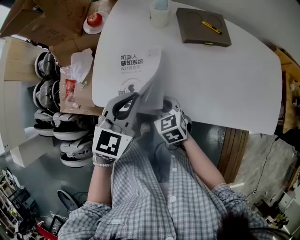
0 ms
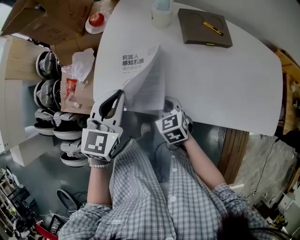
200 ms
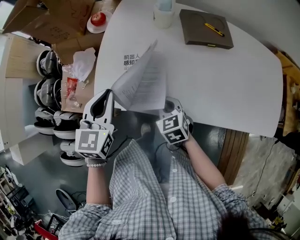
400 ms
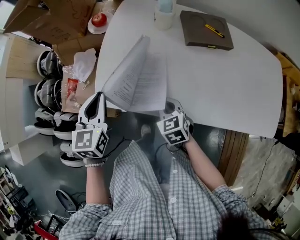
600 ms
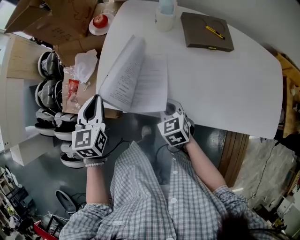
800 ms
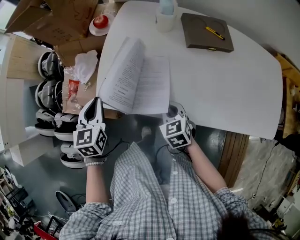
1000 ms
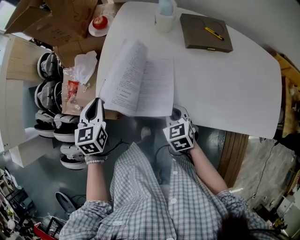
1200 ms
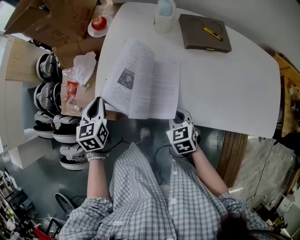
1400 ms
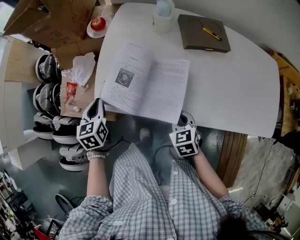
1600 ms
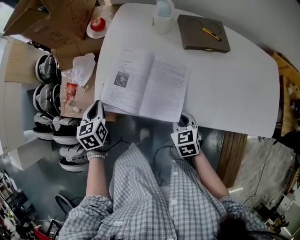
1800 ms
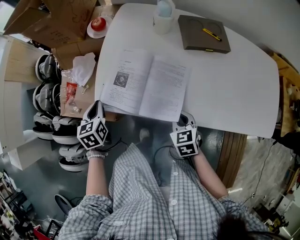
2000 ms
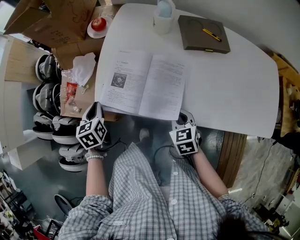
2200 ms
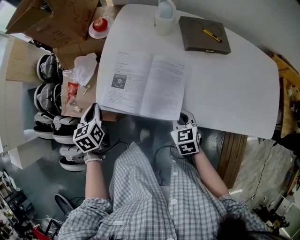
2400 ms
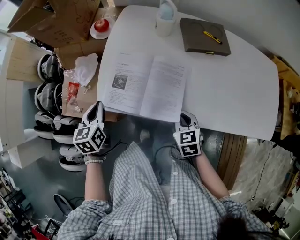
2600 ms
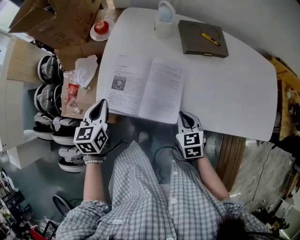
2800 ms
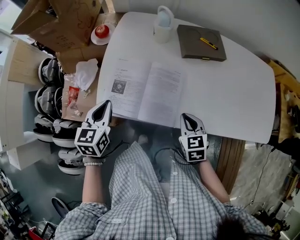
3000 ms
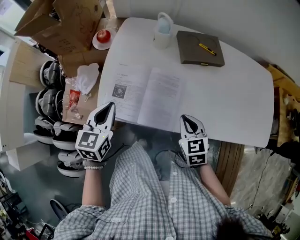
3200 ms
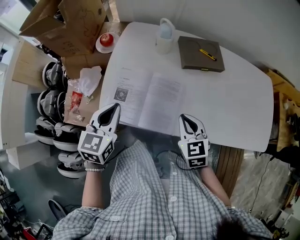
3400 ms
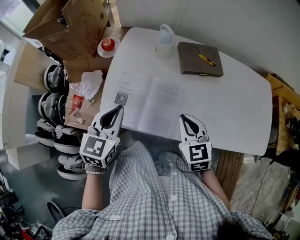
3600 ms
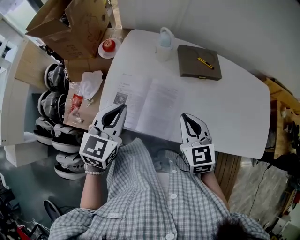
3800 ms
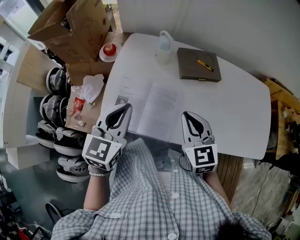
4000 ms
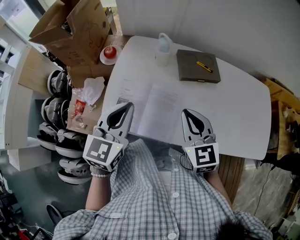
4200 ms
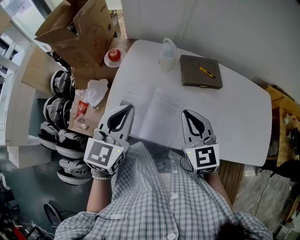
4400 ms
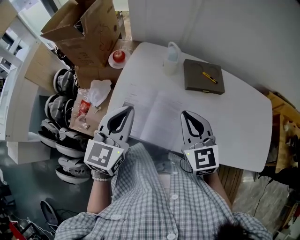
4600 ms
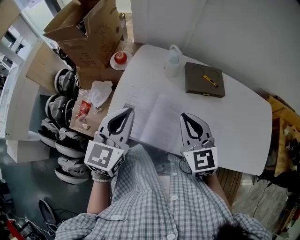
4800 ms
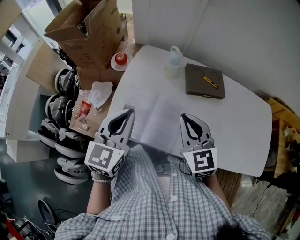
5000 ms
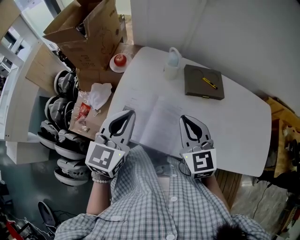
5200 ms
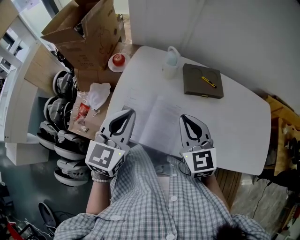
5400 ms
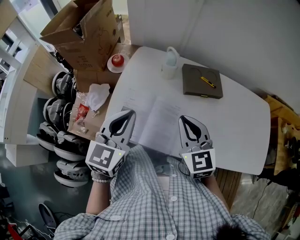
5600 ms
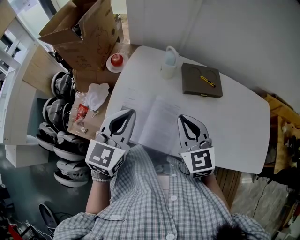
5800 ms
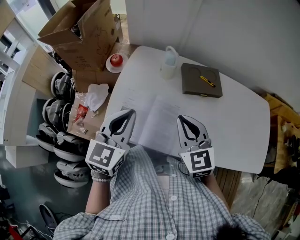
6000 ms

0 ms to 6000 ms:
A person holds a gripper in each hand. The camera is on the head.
0 ms to 1600 ms: The right gripper is displaced to the right by some 5 cm. Meanwhile the left gripper moves to the left and downward, roughly 20 cm, and changes its angle by about 40 degrees.
1600 ms to 3000 ms: The left gripper shifts some 10 cm upward and to the right. The right gripper shifts by about 5 cm.
3000 ms to 4400 ms: The left gripper travels upward and to the right by roughly 20 cm, and changes its angle by approximately 20 degrees; the right gripper is displaced upward by about 20 cm, and changes its angle by about 30 degrees.
4400 ms to 6000 ms: The grippers make only small movements.

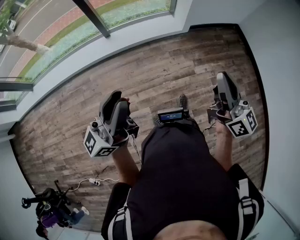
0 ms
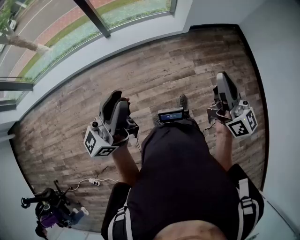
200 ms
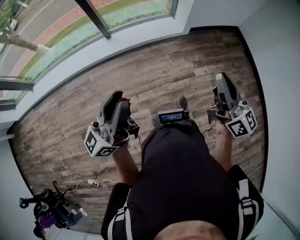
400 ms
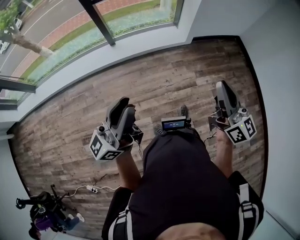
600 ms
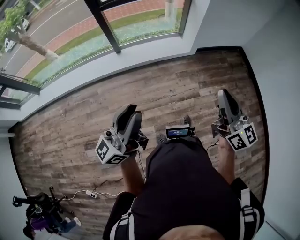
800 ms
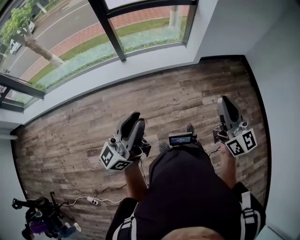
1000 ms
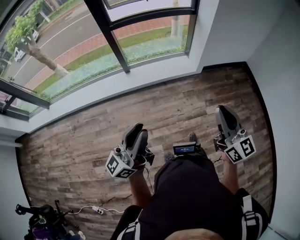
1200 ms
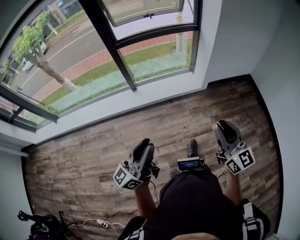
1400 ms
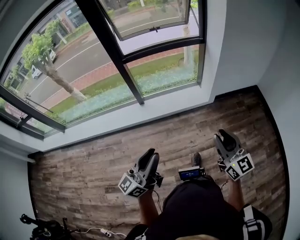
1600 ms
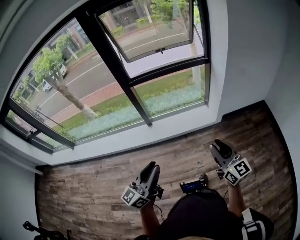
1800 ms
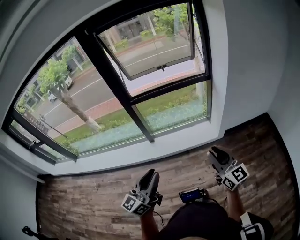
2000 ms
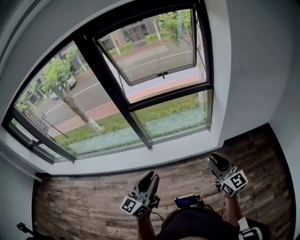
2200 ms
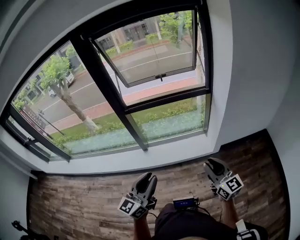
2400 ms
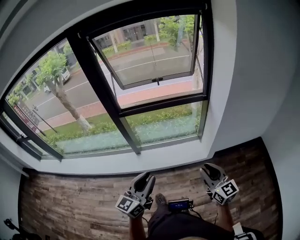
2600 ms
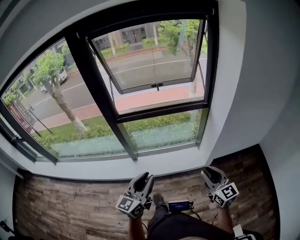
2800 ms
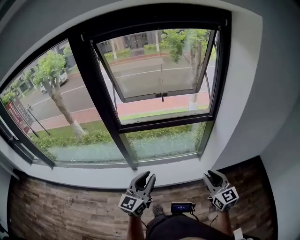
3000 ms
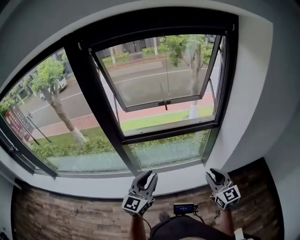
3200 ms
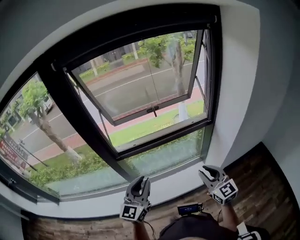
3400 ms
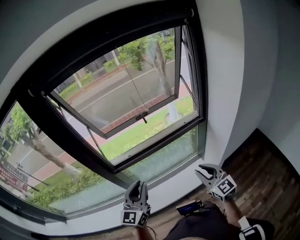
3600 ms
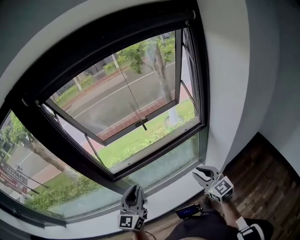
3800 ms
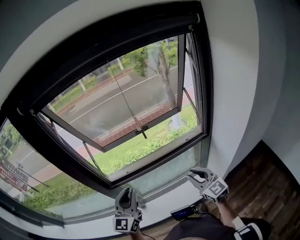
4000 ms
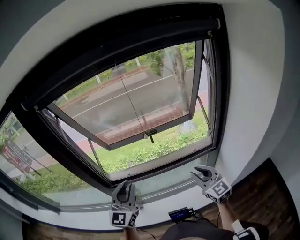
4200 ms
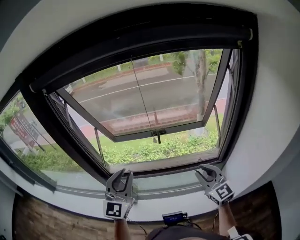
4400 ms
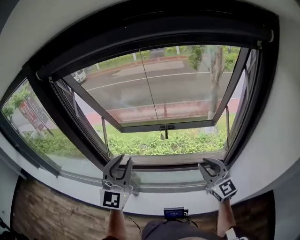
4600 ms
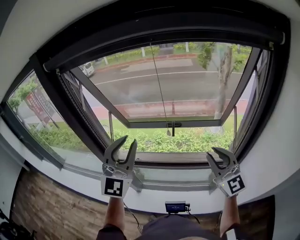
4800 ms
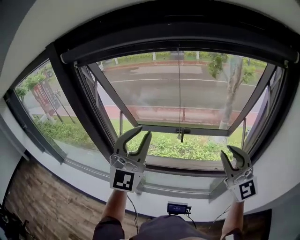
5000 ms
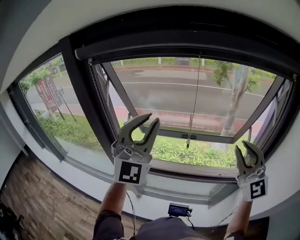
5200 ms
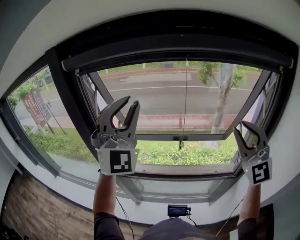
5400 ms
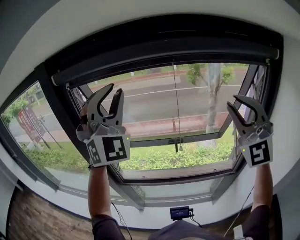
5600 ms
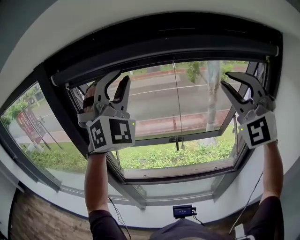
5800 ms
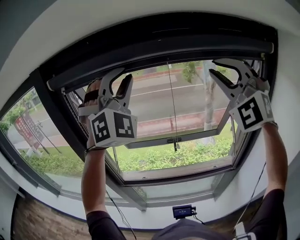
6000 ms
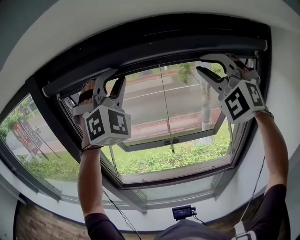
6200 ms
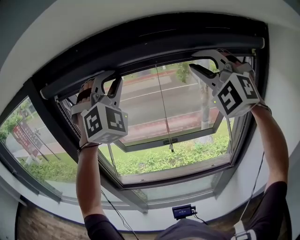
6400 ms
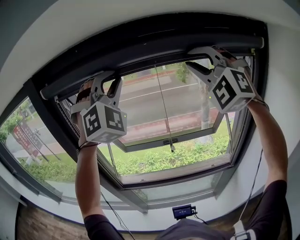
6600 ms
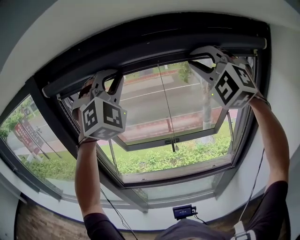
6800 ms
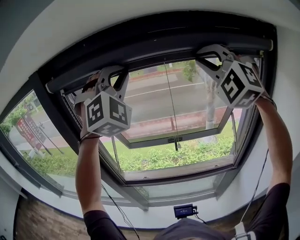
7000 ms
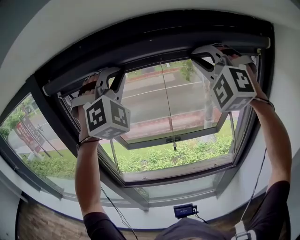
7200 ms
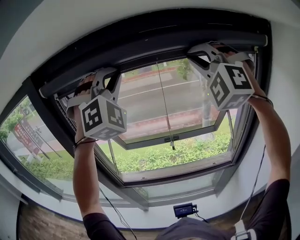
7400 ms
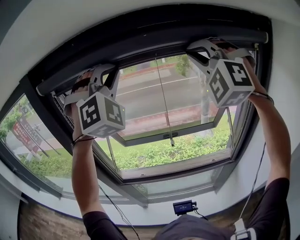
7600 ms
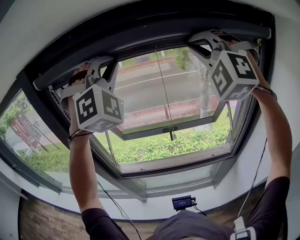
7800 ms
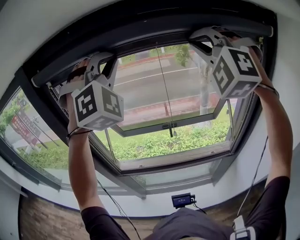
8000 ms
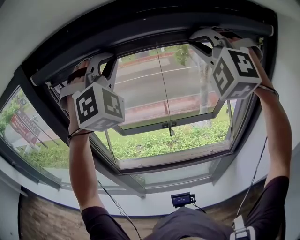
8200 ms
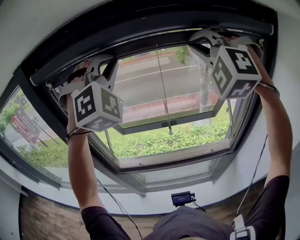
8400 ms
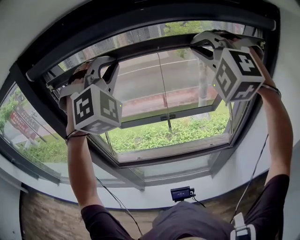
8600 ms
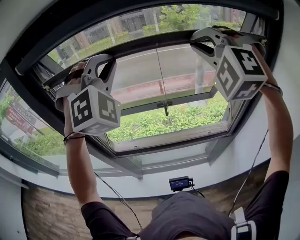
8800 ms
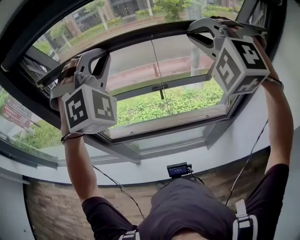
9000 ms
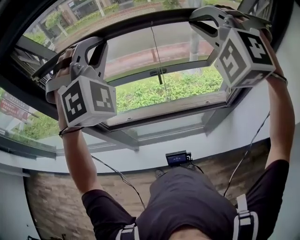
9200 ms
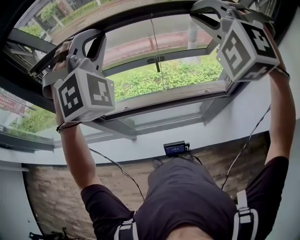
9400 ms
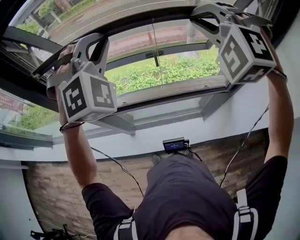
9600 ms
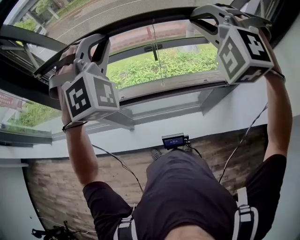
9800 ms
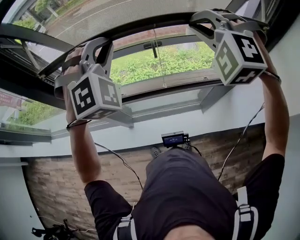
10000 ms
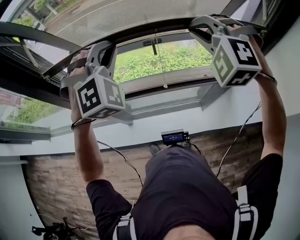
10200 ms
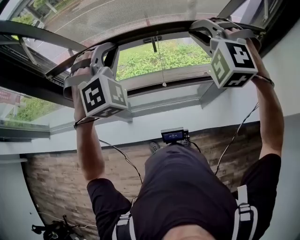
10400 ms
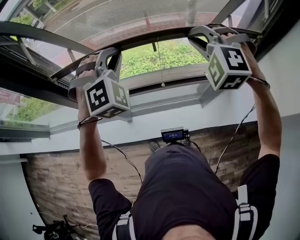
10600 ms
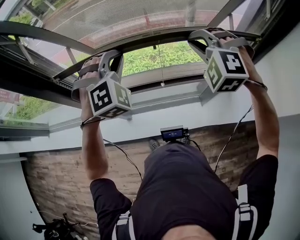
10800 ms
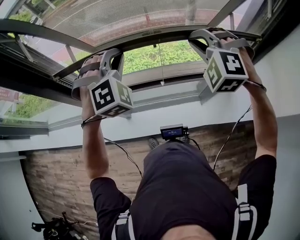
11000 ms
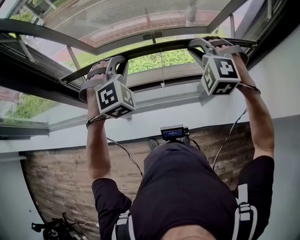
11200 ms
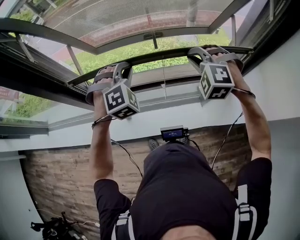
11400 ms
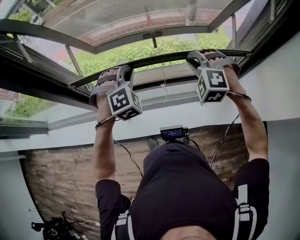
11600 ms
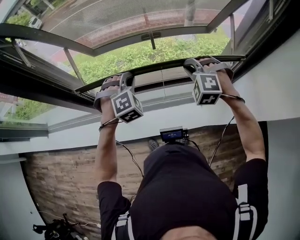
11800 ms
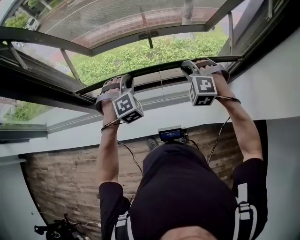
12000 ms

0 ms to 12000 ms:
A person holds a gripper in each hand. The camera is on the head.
0 ms to 1600 ms: The left gripper travels forward by about 10 cm; the right gripper is displaced forward and to the left by some 10 cm, rotates about 20 degrees, and opens up.
1600 ms to 3000 ms: Both grippers move forward, about 40 cm. The left gripper swivels about 30 degrees.
3000 ms to 4400 ms: The grippers both shift forward by some 35 cm. The left gripper changes its angle by roughly 30 degrees.
4400 ms to 6000 ms: The grippers both shift upward by about 40 cm. The right gripper rotates around the line of its fingers by approximately 70 degrees, counterclockwise from behind; the left gripper rolls clockwise, seen from behind, by about 60 degrees.
6000 ms to 7600 ms: The right gripper is displaced forward by some 5 cm.
7600 ms to 9000 ms: Both grippers move downward, approximately 10 cm.
9000 ms to 10400 ms: Both grippers move downward, approximately 20 cm.
10400 ms to 12000 ms: Both grippers travel together downward, roughly 20 cm. The left gripper swivels roughly 20 degrees.

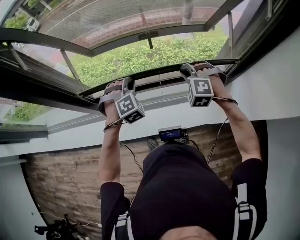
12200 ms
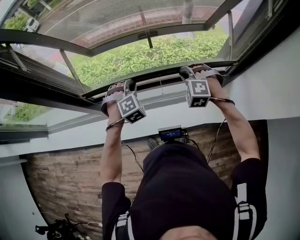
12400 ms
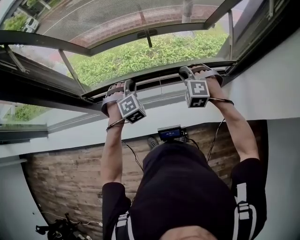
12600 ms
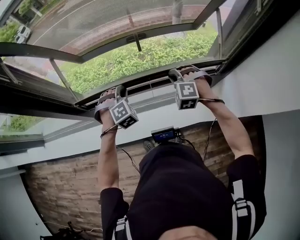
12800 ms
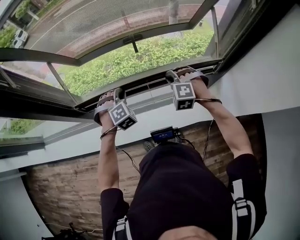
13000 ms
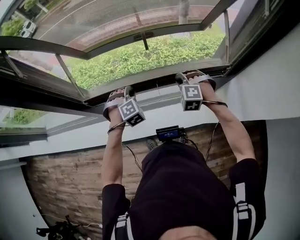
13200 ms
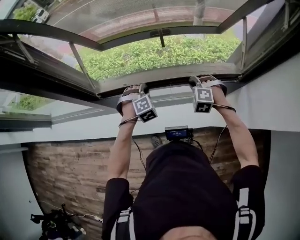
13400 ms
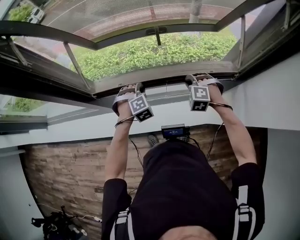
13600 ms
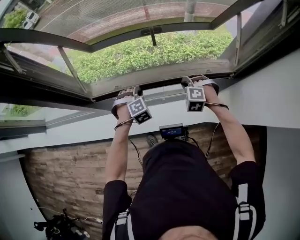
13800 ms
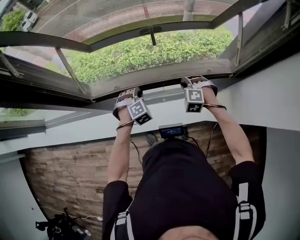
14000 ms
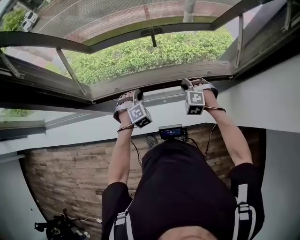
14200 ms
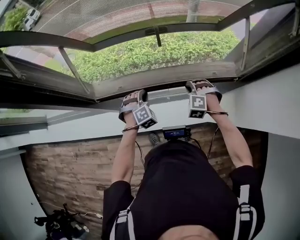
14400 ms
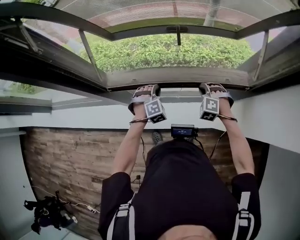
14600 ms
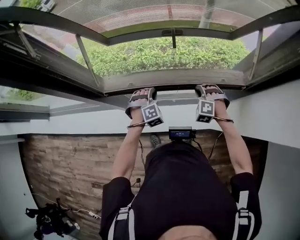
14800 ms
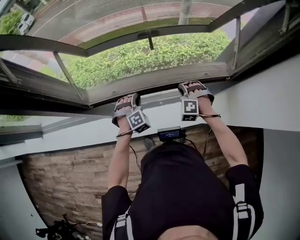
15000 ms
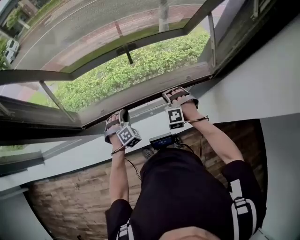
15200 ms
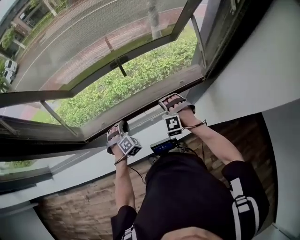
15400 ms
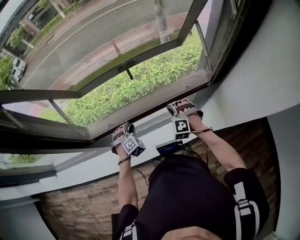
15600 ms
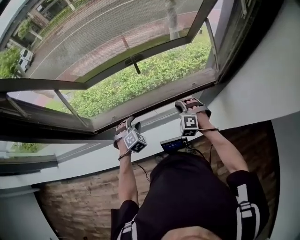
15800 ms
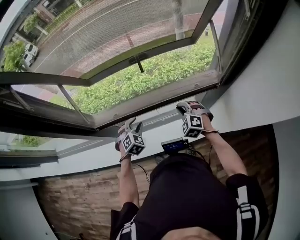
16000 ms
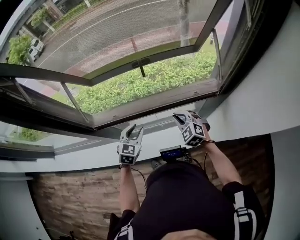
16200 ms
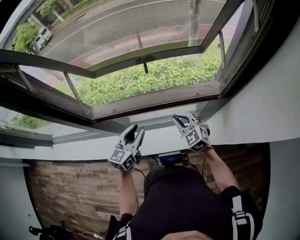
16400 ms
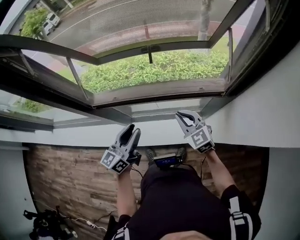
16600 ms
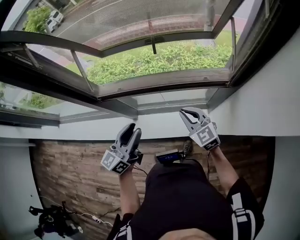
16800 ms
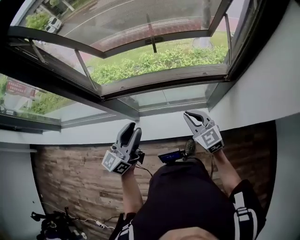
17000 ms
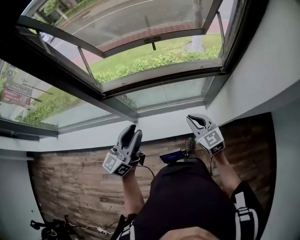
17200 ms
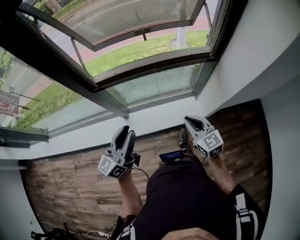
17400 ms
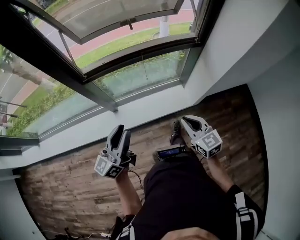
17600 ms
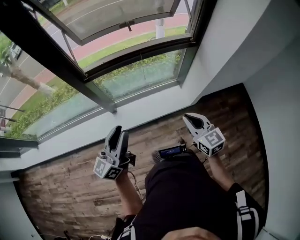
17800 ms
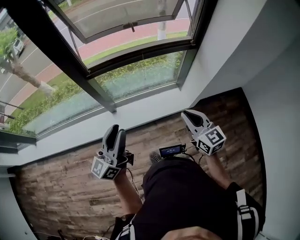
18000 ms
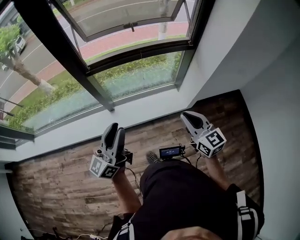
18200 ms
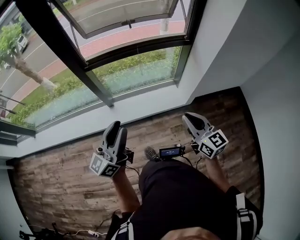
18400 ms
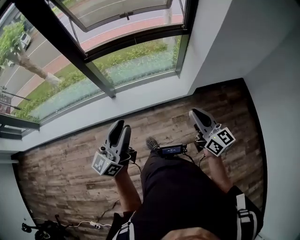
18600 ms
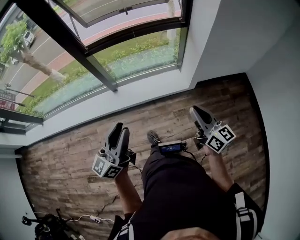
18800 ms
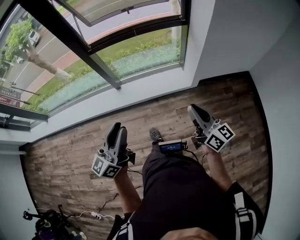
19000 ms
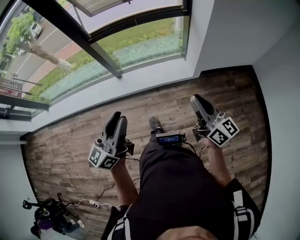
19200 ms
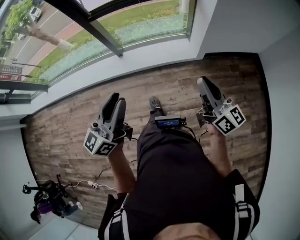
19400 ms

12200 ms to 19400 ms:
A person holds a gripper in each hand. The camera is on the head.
12200 ms to 13600 ms: Both grippers move downward, some 10 cm.
13600 ms to 15000 ms: The grippers move only a little.
15000 ms to 16600 ms: The left gripper goes about 25 cm upward and backward, rotates around the line of its fingers by approximately 80 degrees, counterclockwise from behind, and opens its fingers; the right gripper travels upward and backward by some 15 cm, and rotates roughly 70 degrees.
16600 ms to 18000 ms: The left gripper heads backward and to the left, covering about 35 cm, and rotates roughly 20 degrees. Meanwhile the right gripper moves backward, roughly 35 cm, and rotates about 30 degrees.
18000 ms to 19400 ms: Both grippers move backward and to the right, some 30 cm. The right gripper rotates roughly 40 degrees.
